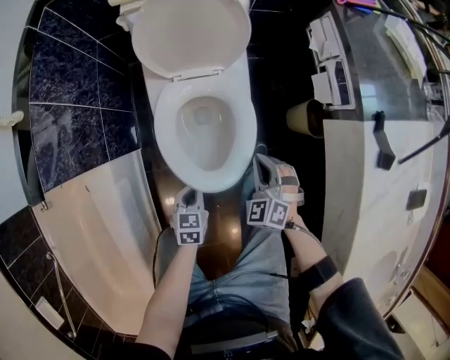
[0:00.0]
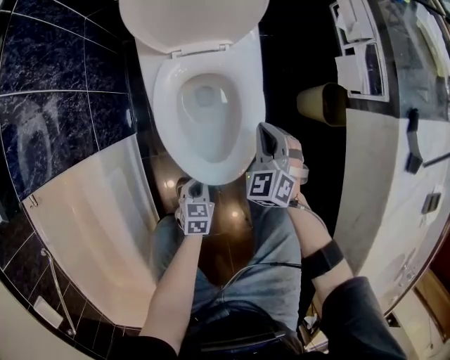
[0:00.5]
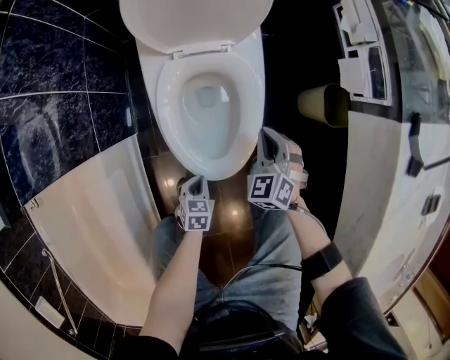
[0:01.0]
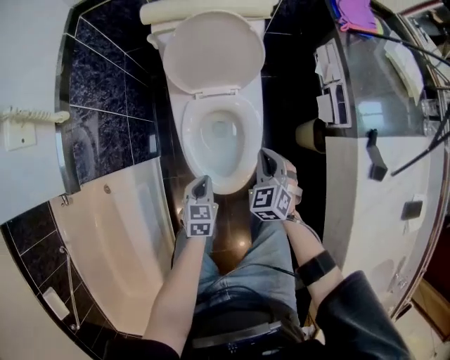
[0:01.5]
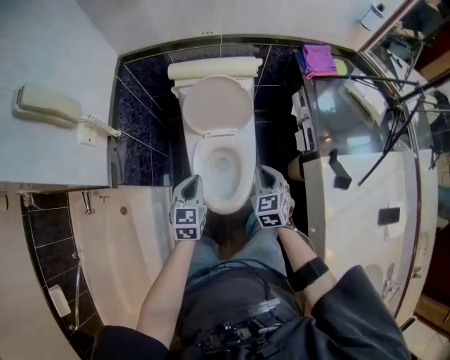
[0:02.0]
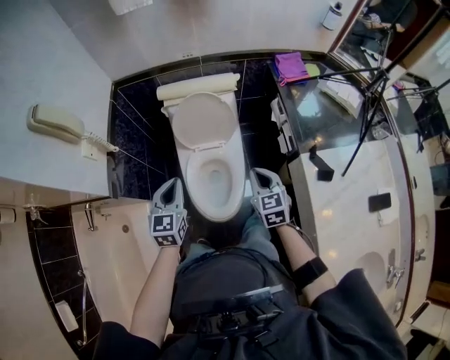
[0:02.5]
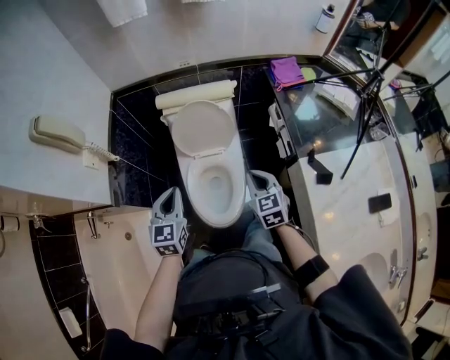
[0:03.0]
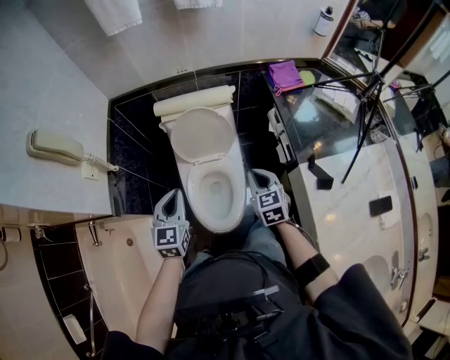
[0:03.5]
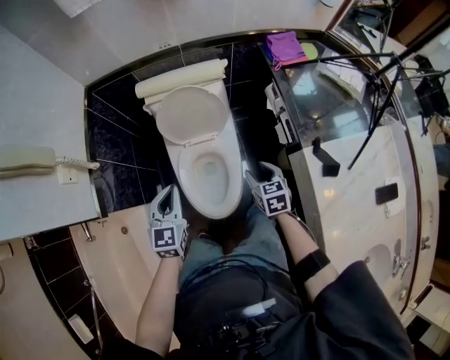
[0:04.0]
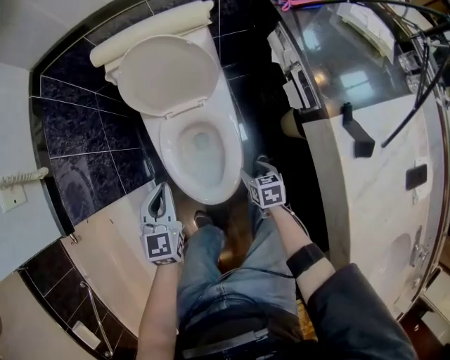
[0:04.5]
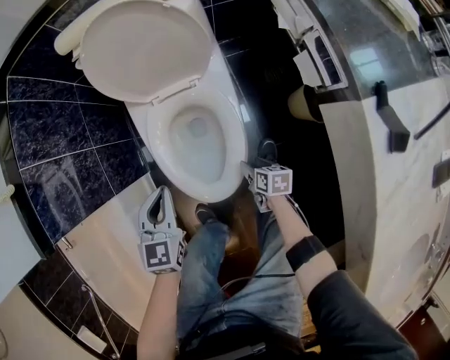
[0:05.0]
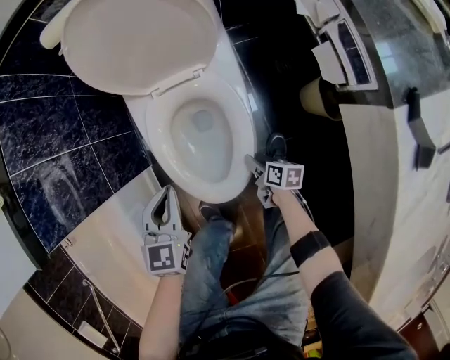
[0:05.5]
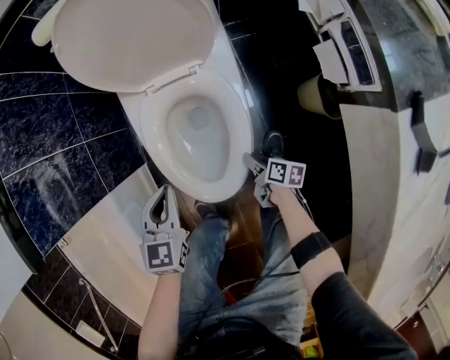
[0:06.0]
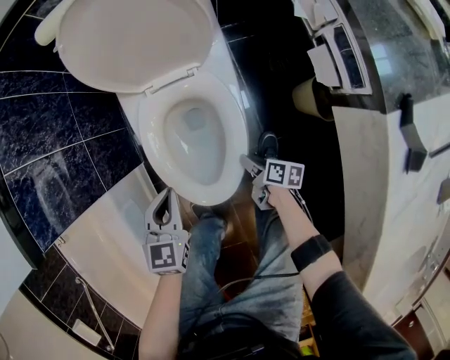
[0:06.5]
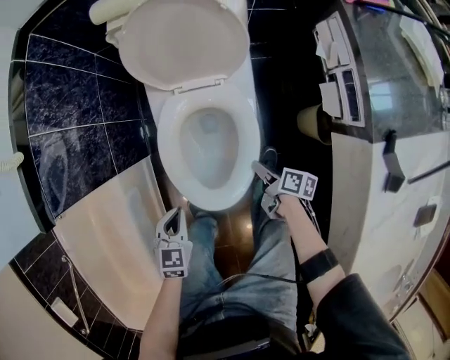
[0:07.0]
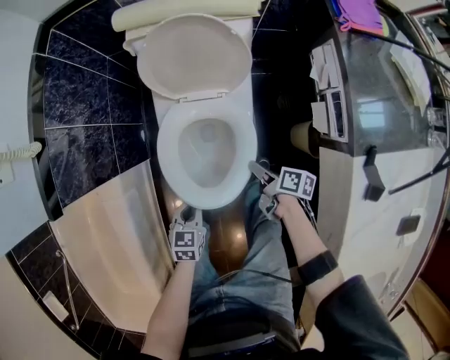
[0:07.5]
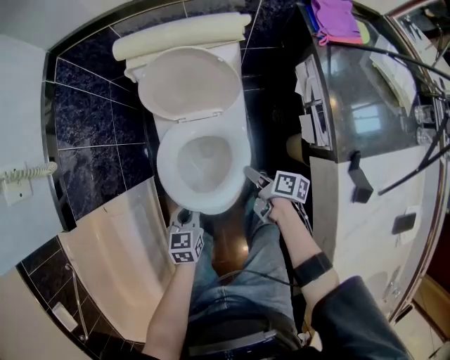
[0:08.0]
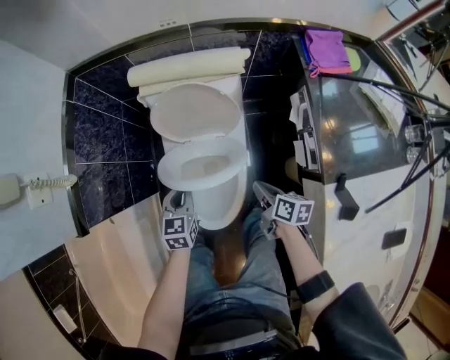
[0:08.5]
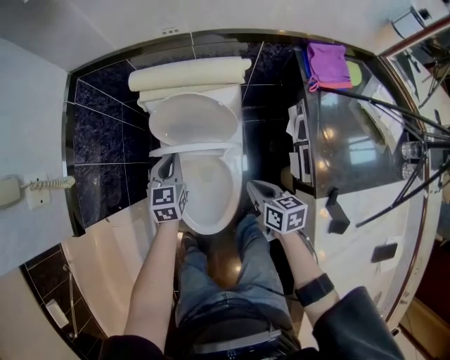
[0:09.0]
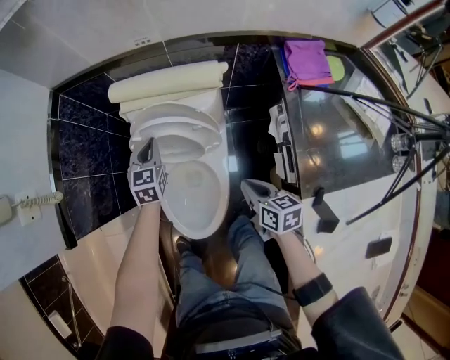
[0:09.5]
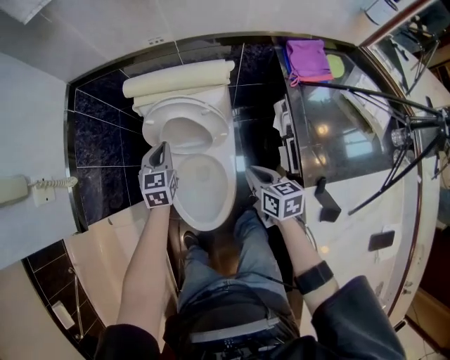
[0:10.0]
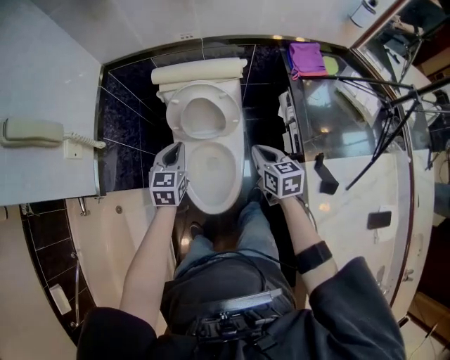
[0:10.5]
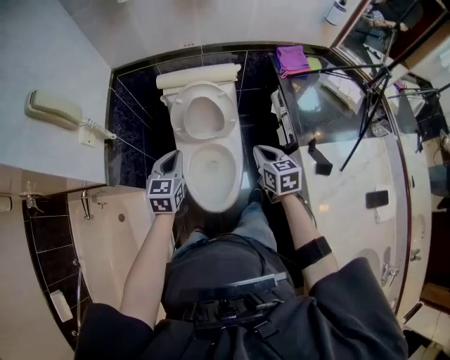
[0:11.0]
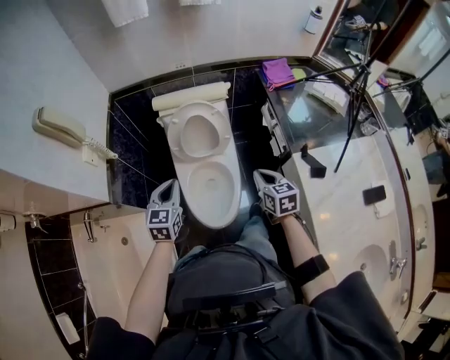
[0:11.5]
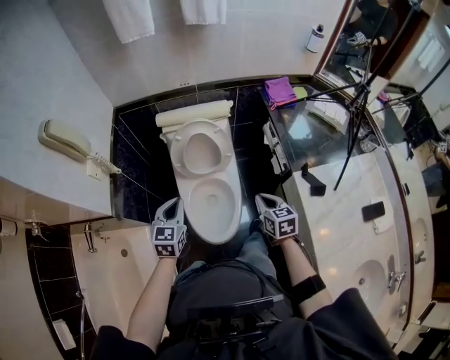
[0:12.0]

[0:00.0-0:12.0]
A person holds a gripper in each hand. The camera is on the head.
0:00.0 to 0:02.0: The two grippers go approximately 30 cm upward. The left gripper changes its angle by roughly 20 degrees; the right gripper turns by about 30 degrees.
0:02.0 to 0:04.0: The left gripper travels upward by some 5 cm. The right gripper heads to the right, covering approximately 5 cm, travels upward and back again, about 10 cm each way, rotates approximately 20 degrees, and opens.
0:04.0 to 0:06.0: Both grippers move downward, about 40 cm. The right gripper twists some 50 degrees clockwise, seen from behind, and closes.
0:06.0 to 0:08.0: The left gripper moves upward, approximately 5 cm, and moves about 10 cm backward and comes back; the right gripper is displaced upward and forward by roughly 25 cm.
0:08.0 to 0:10.0: The left gripper shifts roughly 30 cm forward and upward, and changes its angle by roughly 20 degrees. Meanwhile the right gripper shifts roughly 20 cm upward, forward and to the right, rolls counterclockwise, seen from behind, by some 40 degrees, and closes its fingers.
0:10.0 to 0:12.0: The two grippers go about 25 cm backward and upward.

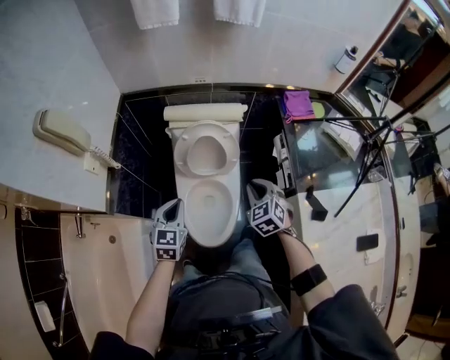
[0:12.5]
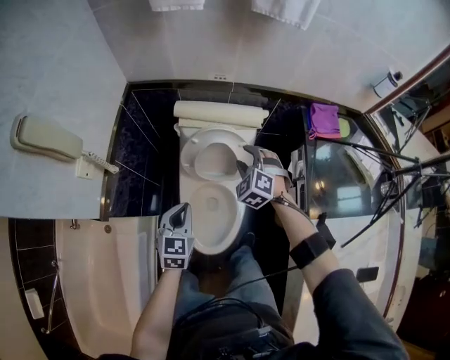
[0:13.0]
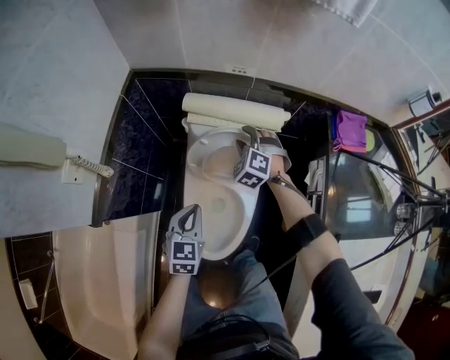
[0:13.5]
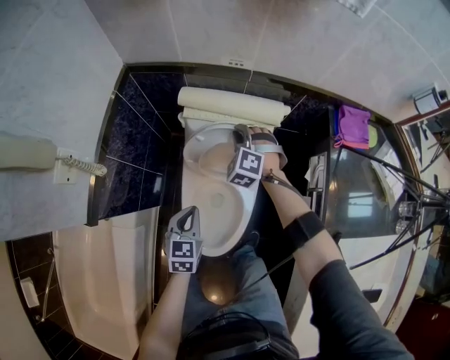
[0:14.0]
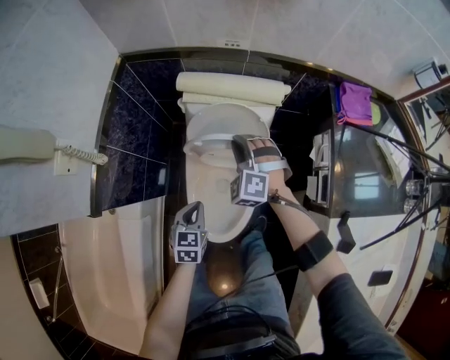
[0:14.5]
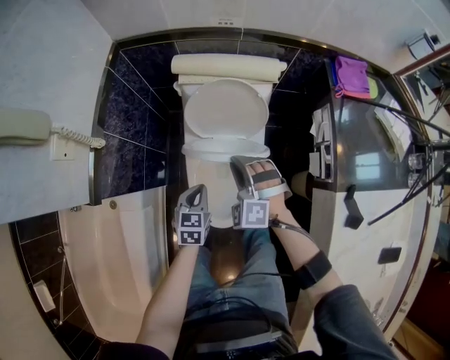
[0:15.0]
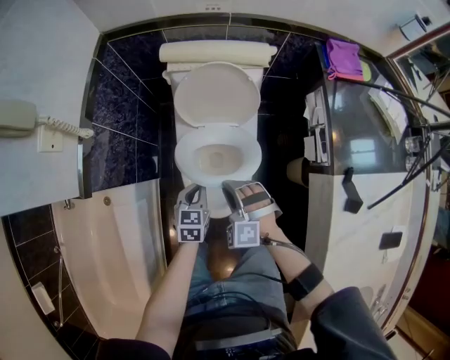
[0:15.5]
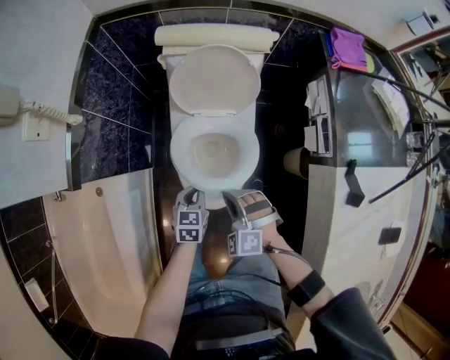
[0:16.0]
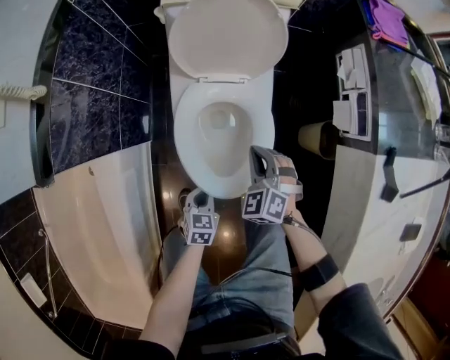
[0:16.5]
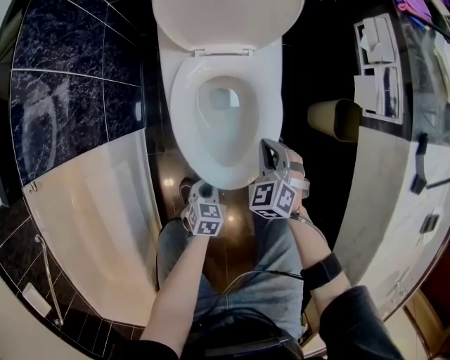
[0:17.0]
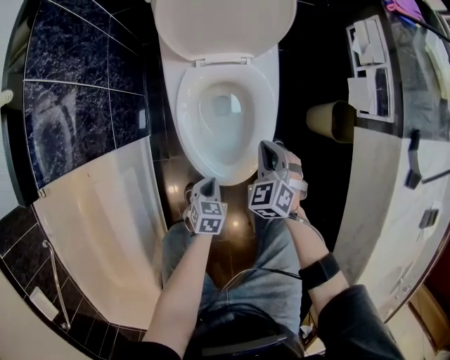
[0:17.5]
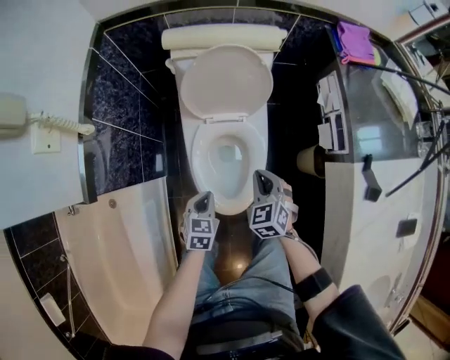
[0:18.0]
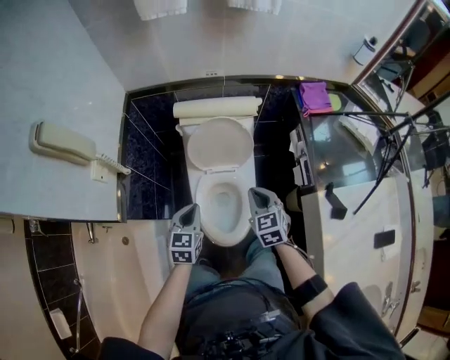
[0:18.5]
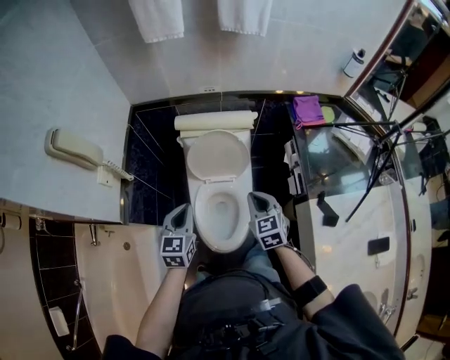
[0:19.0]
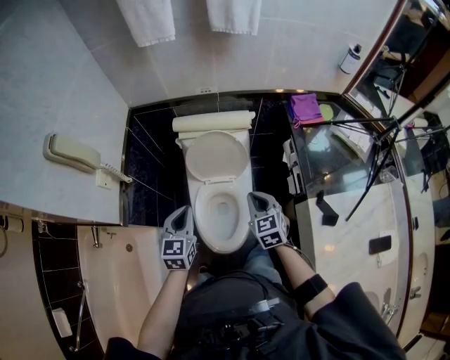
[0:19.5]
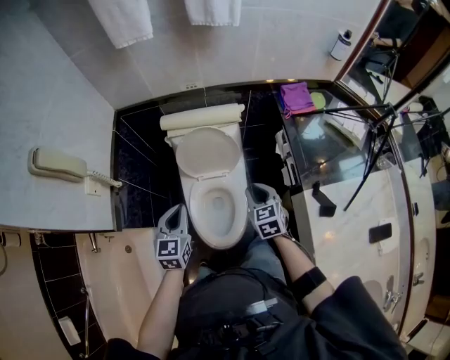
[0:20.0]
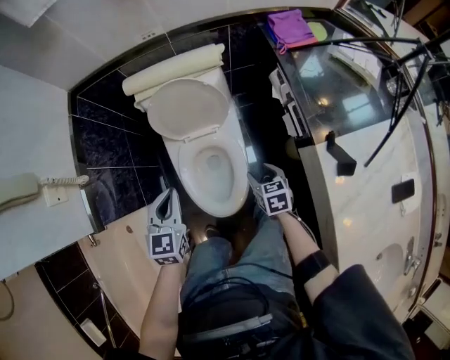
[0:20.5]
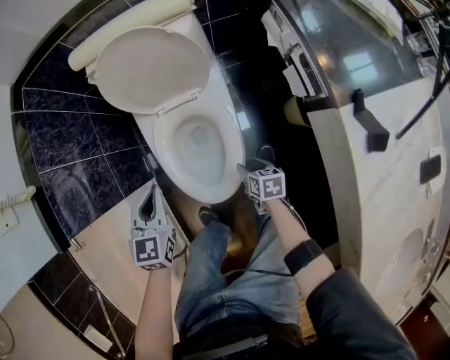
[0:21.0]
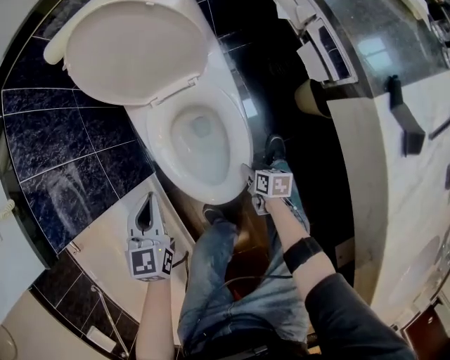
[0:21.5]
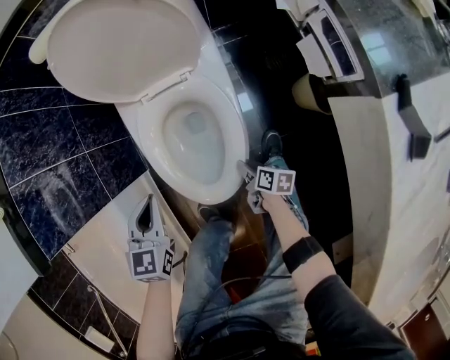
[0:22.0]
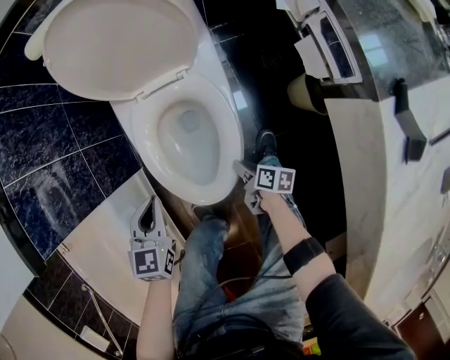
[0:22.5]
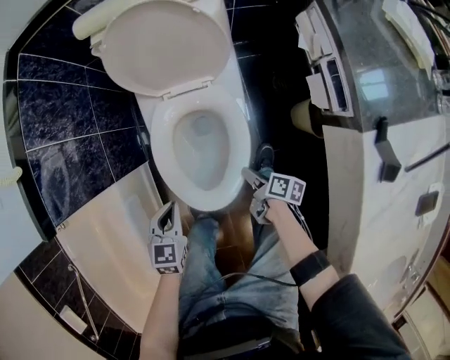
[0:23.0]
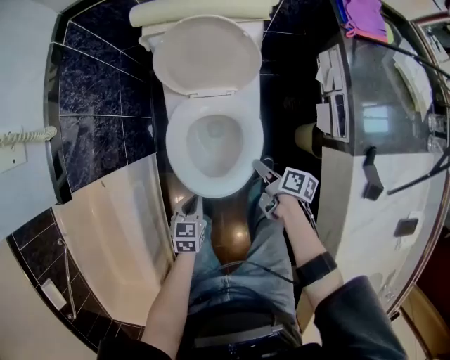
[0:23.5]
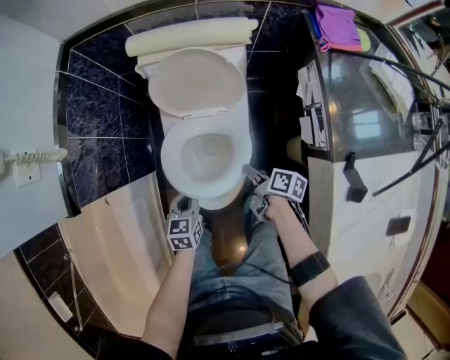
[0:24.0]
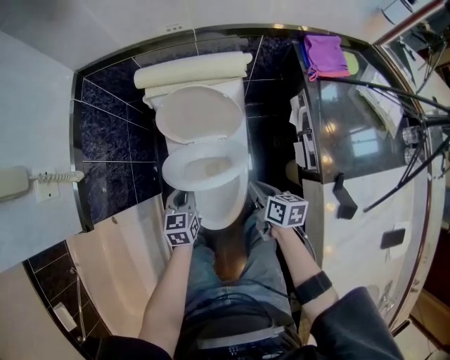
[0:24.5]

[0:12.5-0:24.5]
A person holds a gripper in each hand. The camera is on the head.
0:12.5 to 0:14.5: The right gripper goes some 25 cm forward, to the left and downward, rolls counterclockwise, seen from behind, by some 40 degrees, and opens, then closes again; the left gripper moves downward, approximately 20 cm.
0:14.5 to 0:16.5: The left gripper shifts some 30 cm downward and backward, while the right gripper shifts approximately 30 cm backward and downward, and turns by about 30 degrees.
0:16.5 to 0:18.5: The right gripper goes roughly 30 cm upward, and rotates some 40 degrees. The left gripper heads upward and forward, covering approximately 40 cm, and swivels approximately 20 degrees.
0:18.5 to 0:20.5: The left gripper goes upward and returns, about 10 cm each way, while the right gripper heads downward and to the right, covering approximately 20 cm, changes its angle by some 30 degrees, and opens its fingers.
0:20.5 to 0:22.5: Both grippers move downward, some 30 cm. The right gripper rotates around the line of its fingers by about 50 degrees, clockwise from behind, and closes its fingers.
0:22.5 to 0:24.5: The right gripper goes some 40 cm upward and forward, swivels roughly 30 degrees, and closes; the left gripper travels upward, forward and to the right by about 20 cm.

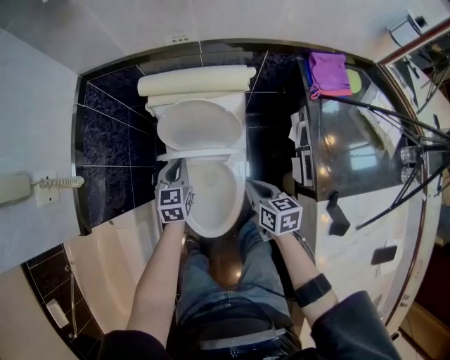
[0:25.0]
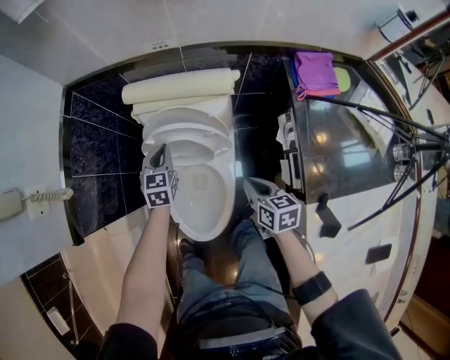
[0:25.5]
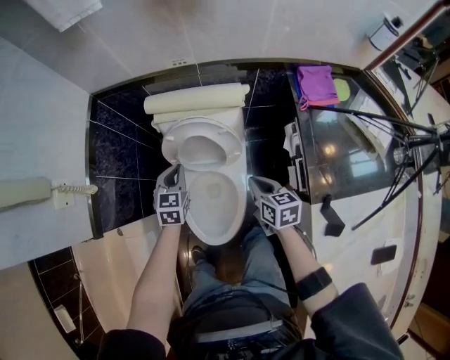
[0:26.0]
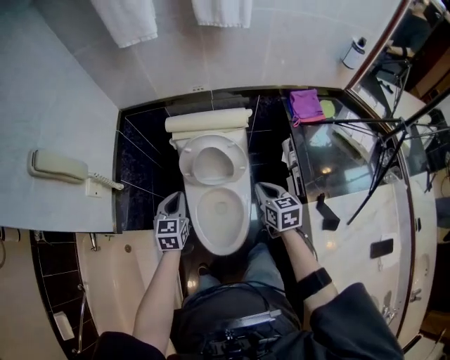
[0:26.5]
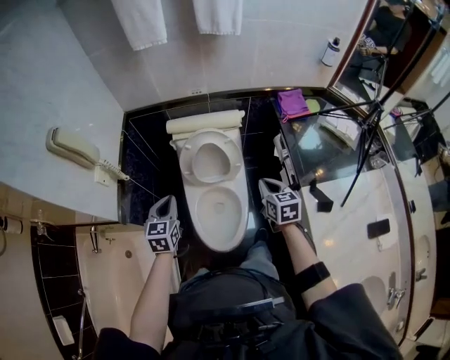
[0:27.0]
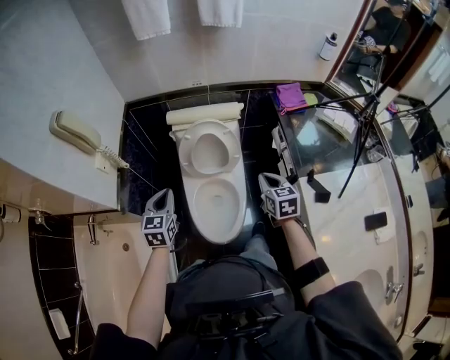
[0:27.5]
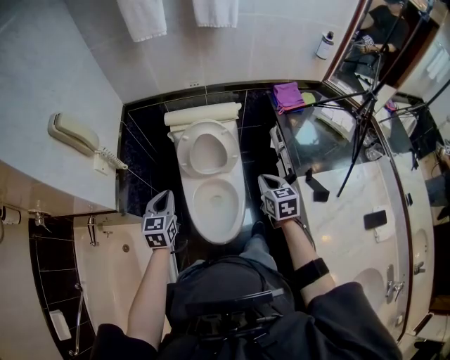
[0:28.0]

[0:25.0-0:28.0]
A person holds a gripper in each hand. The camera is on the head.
0:25.0 to 0:26.5: The left gripper heads upward, backward and to the left, covering some 20 cm. The right gripper is displaced upward by roughly 15 cm.
0:26.5 to 0:28.0: The left gripper moves backward and upward, about 10 cm; the right gripper is displaced backward by roughly 10 cm.
